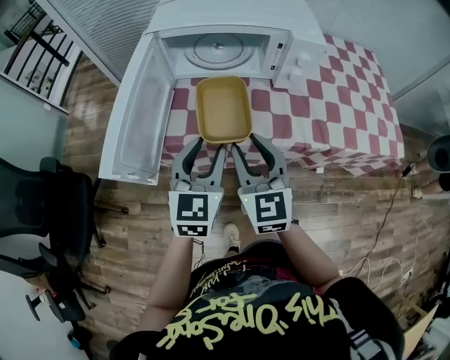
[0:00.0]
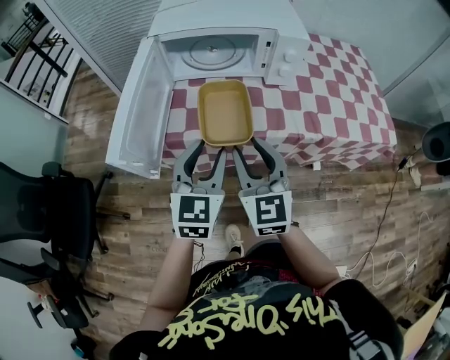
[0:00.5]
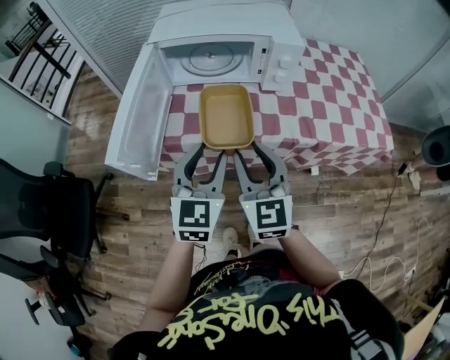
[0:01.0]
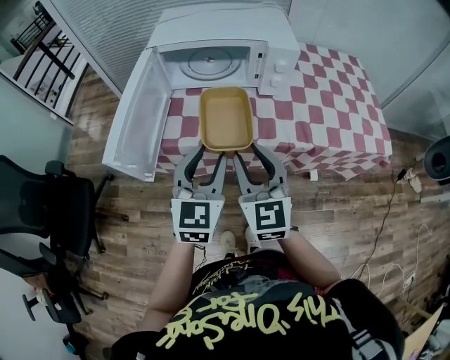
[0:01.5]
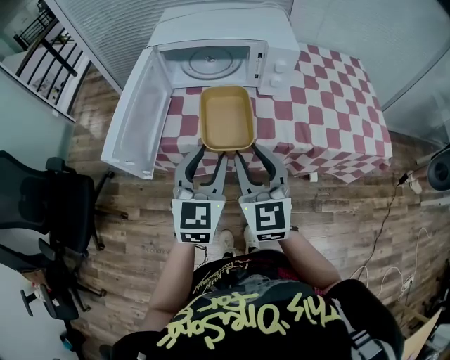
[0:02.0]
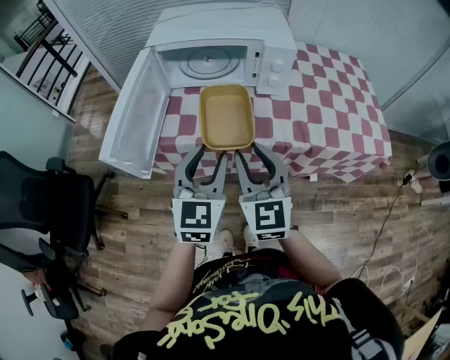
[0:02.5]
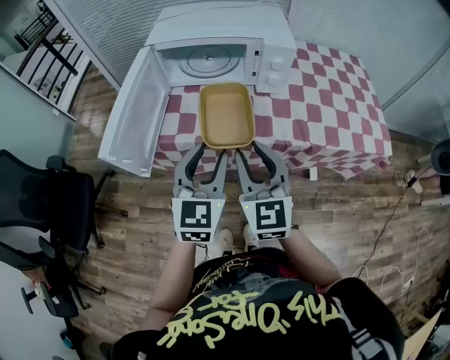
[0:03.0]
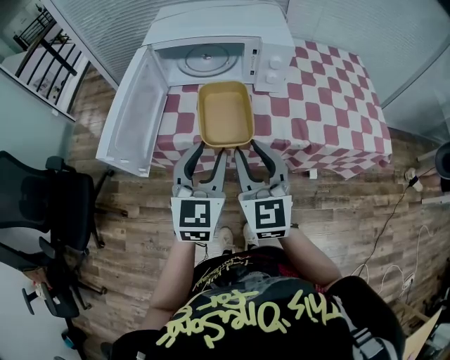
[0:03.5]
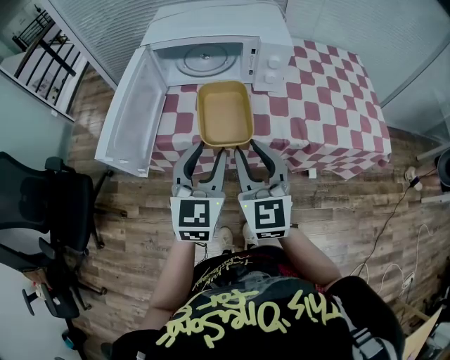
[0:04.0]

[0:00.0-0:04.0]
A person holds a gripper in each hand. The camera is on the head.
0:00.0 to 0:02.0: The two grippers go approximately 5 cm backward.
0:02.0 to 0:04.0: The grippers move only a little.

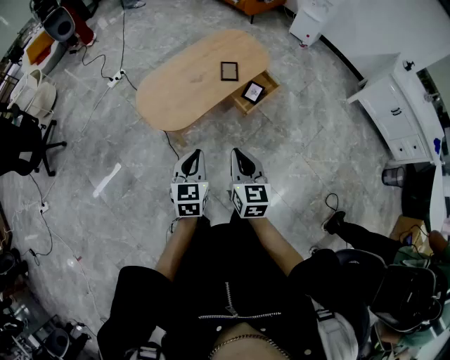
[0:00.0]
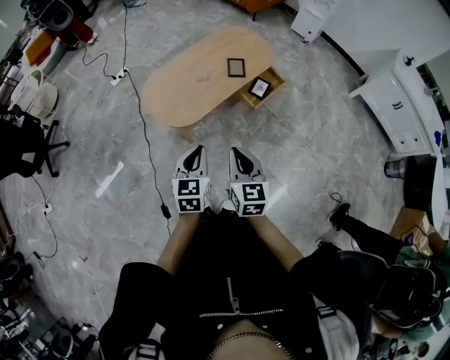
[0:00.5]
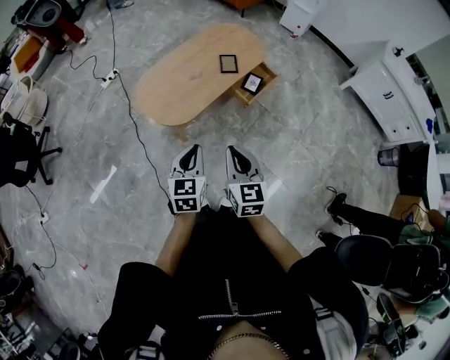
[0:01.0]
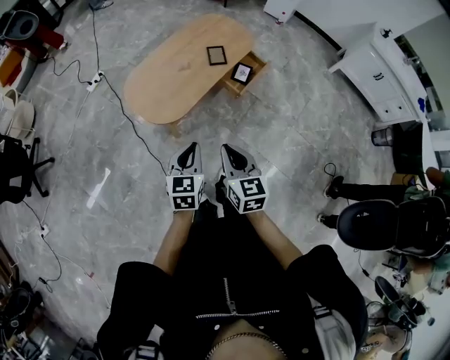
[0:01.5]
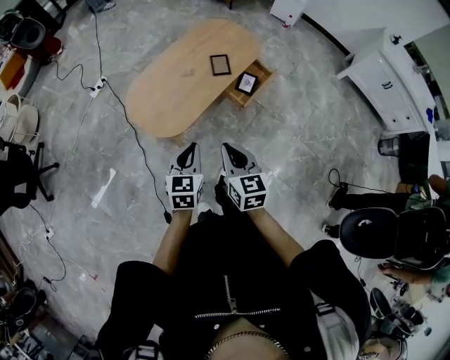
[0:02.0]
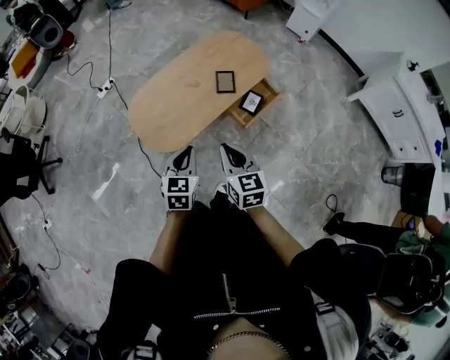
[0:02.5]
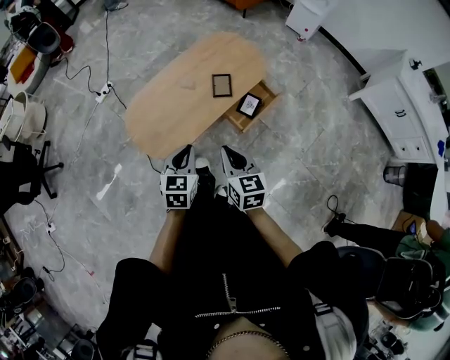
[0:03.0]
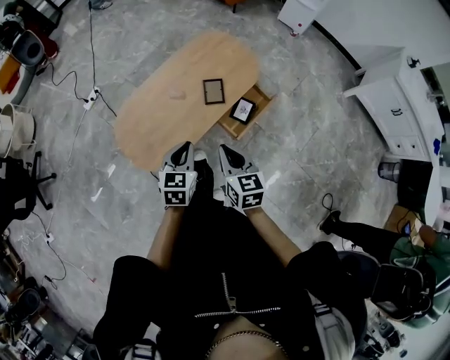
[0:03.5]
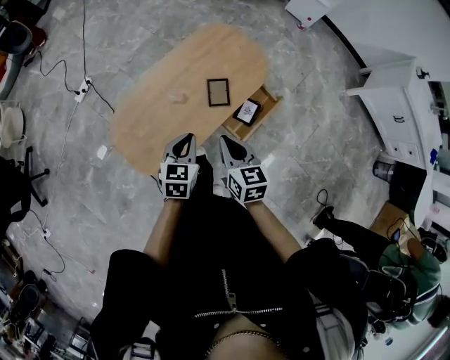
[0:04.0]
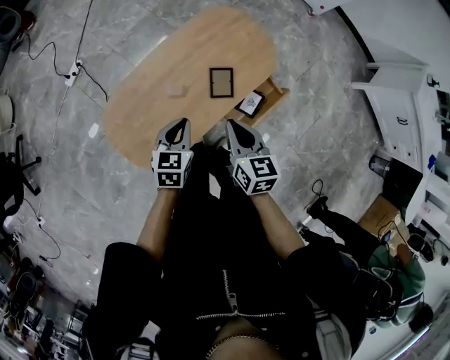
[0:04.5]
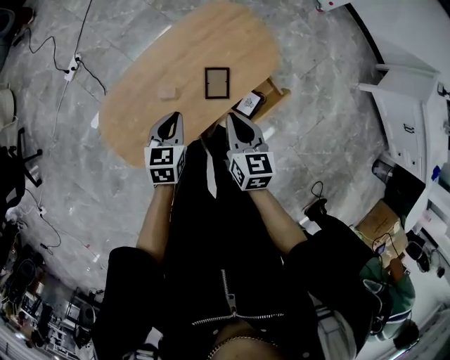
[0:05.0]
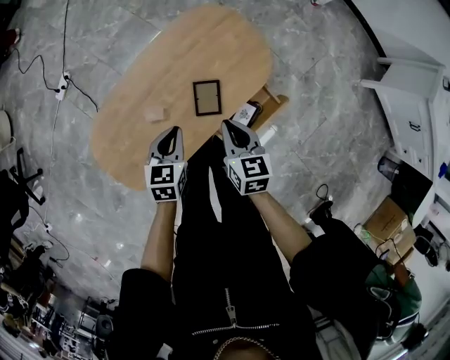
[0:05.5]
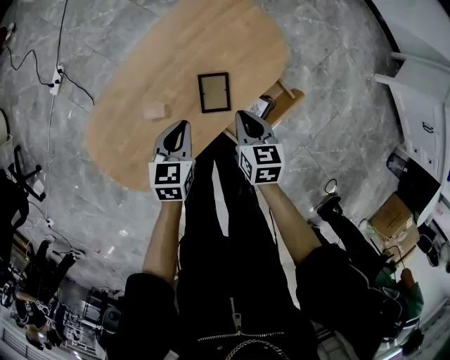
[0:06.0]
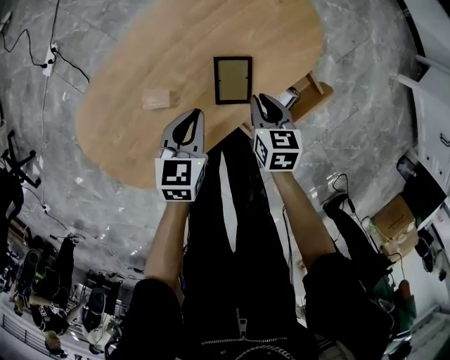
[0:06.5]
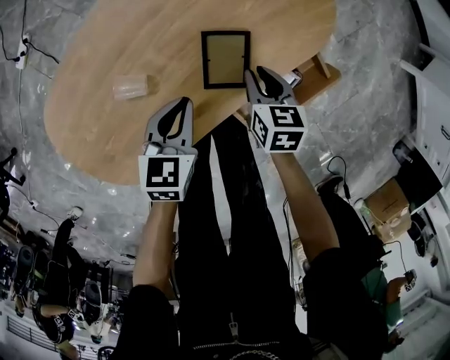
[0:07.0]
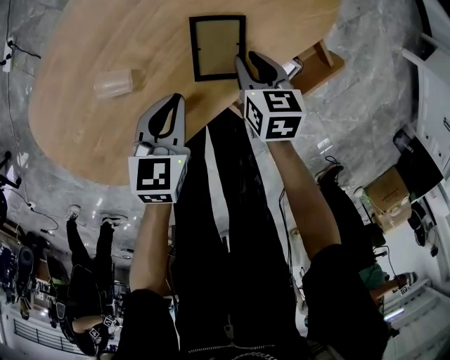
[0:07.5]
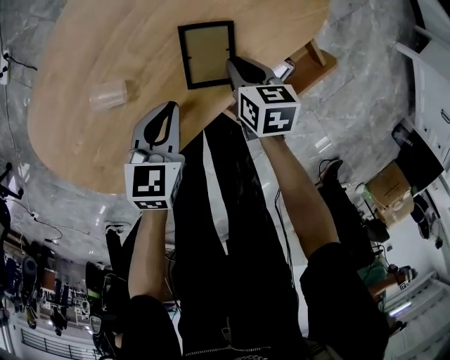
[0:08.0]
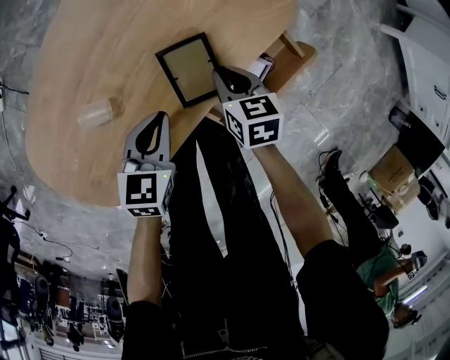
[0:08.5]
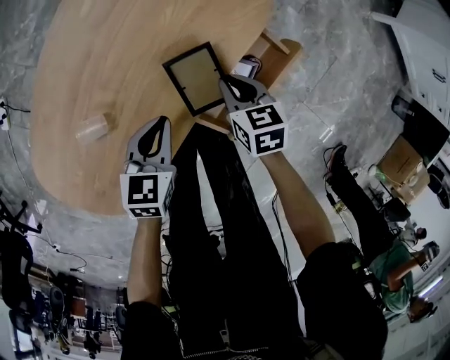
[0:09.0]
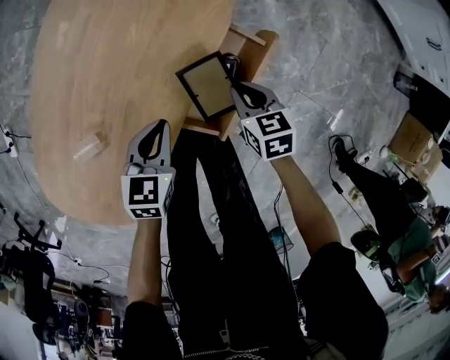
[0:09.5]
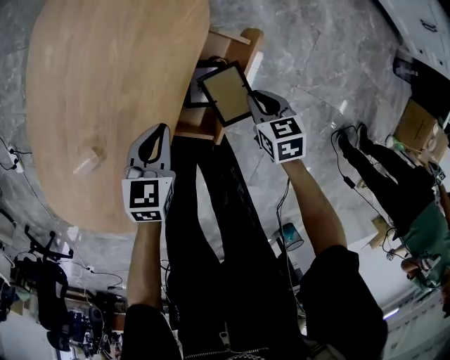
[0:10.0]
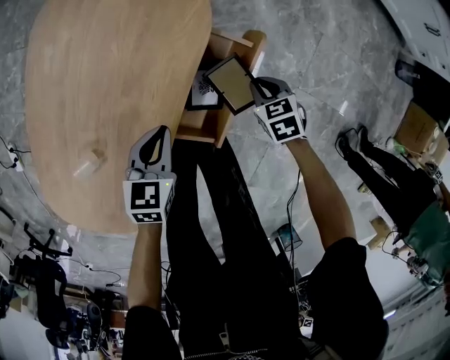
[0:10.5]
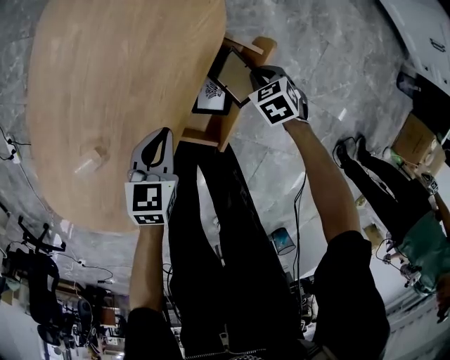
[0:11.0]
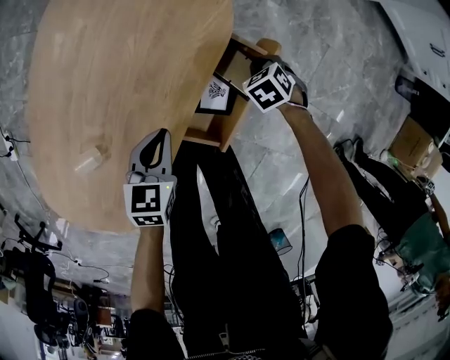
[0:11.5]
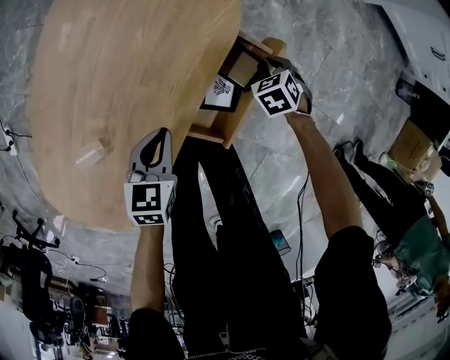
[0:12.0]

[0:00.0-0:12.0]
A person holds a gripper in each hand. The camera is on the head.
0:00.0 to 0:02.0: The right gripper goes roughly 10 cm to the left and forward. Meanwhile the left gripper heads forward and to the left, covering roughly 10 cm.
0:02.0 to 0:04.0: Both grippers travel together forward, approximately 35 cm.
0:04.0 to 0:06.0: The right gripper goes about 30 cm downward, forward and to the right. Meanwhile the left gripper moves downward and forward, some 25 cm.
0:06.0 to 0:08.0: Both grippers move downward, some 20 cm.
0:08.0 to 0:10.0: The right gripper shifts by roughly 25 cm. The left gripper ends up roughly 15 cm from where it was, and turns by roughly 20 degrees.
0:10.0 to 0:12.0: The right gripper shifts by about 10 cm, and swivels roughly 30 degrees.

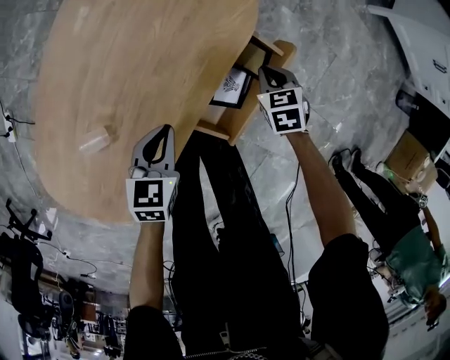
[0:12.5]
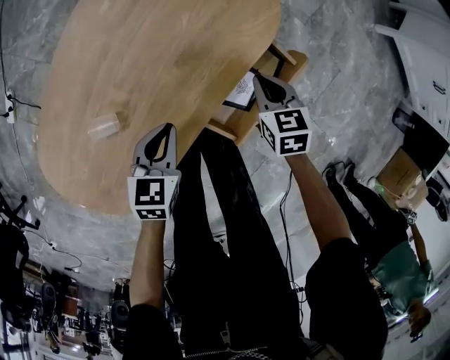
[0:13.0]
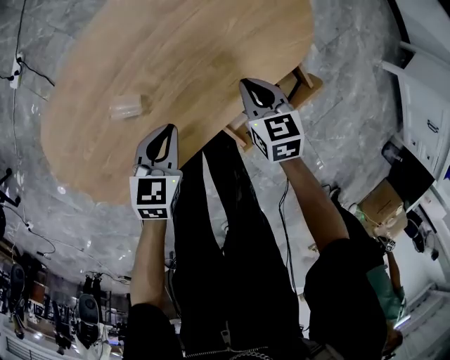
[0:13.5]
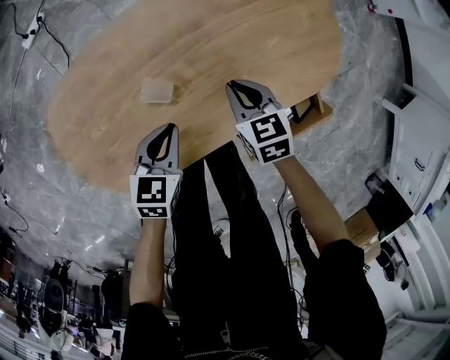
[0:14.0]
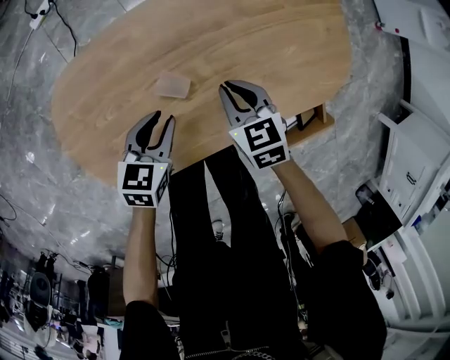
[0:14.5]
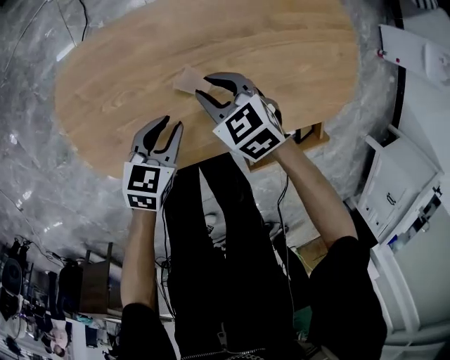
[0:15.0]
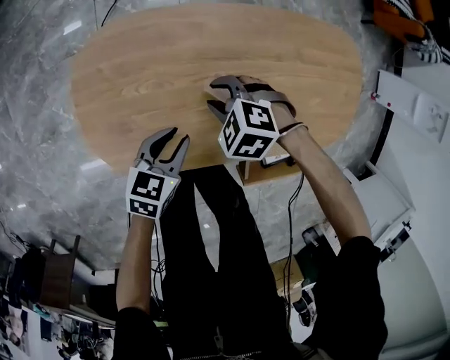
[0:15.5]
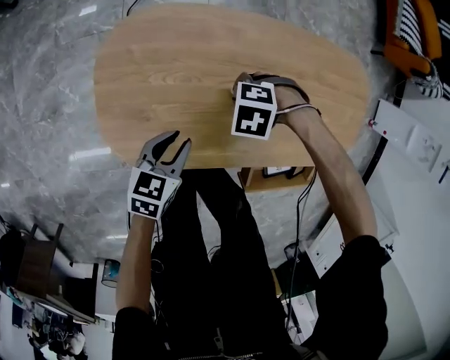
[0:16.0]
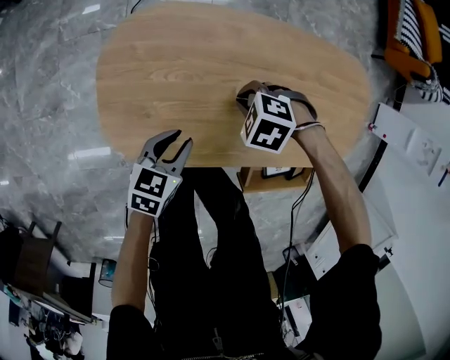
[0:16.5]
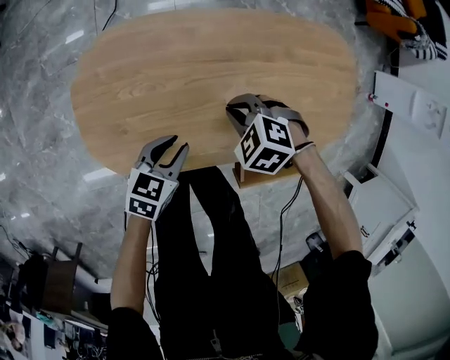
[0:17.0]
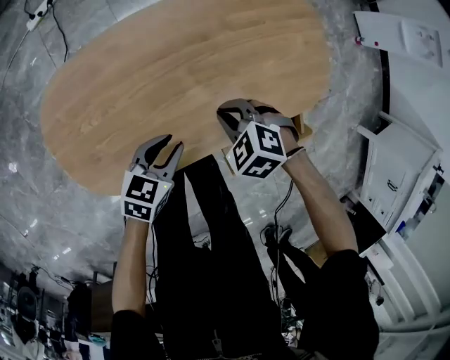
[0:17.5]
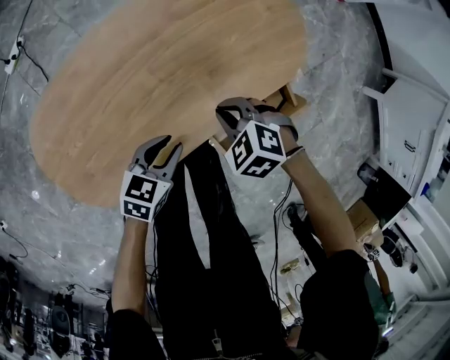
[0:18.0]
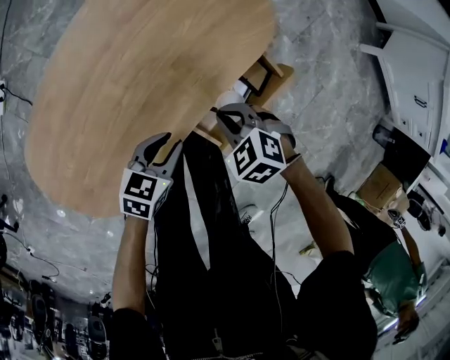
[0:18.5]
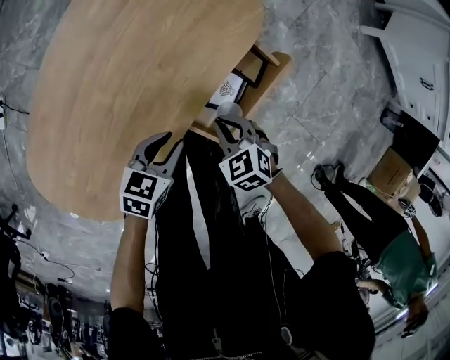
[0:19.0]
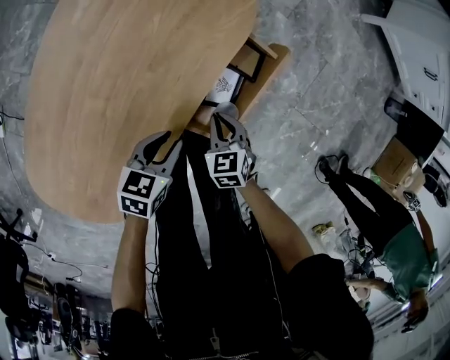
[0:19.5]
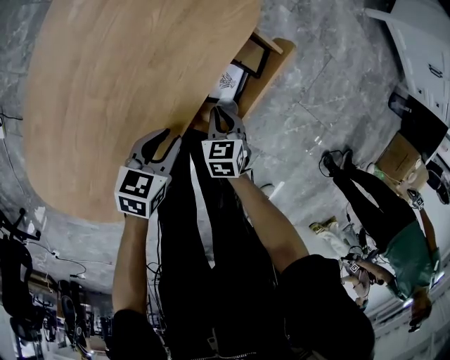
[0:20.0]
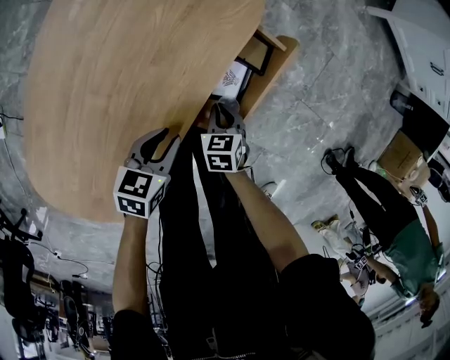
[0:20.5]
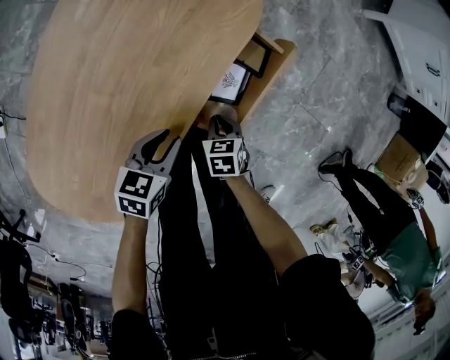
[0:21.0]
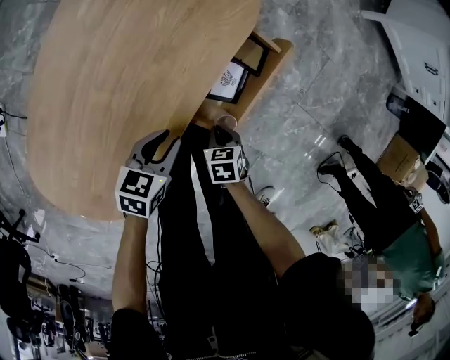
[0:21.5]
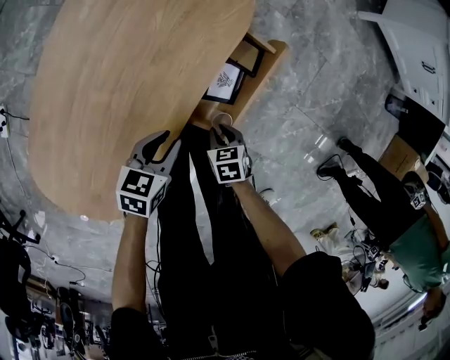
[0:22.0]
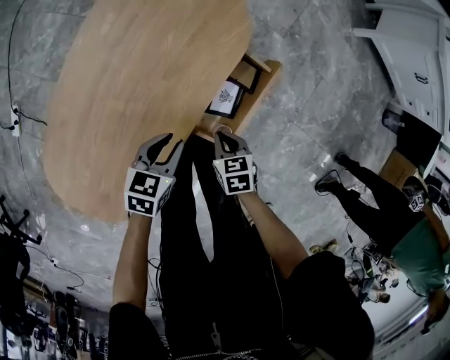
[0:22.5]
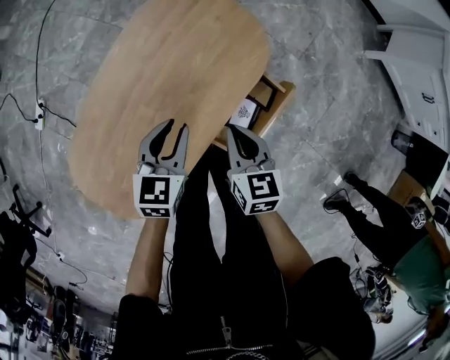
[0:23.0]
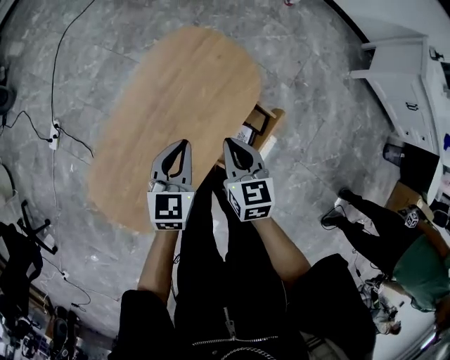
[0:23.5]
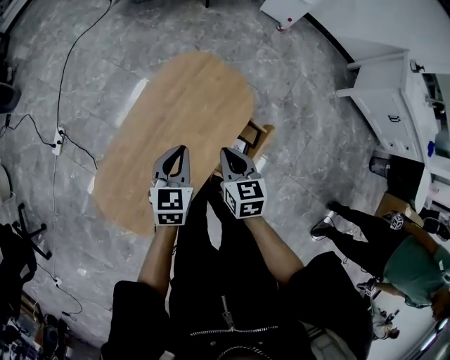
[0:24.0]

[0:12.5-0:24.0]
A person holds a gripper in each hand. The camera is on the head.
0:12.5 to 0:14.5: The right gripper ends up some 40 cm from where it was, and changes its angle by approximately 40 degrees. Meanwhile the left gripper moves roughly 20 cm, turns by roughly 30 degrees, and opens its fingers.
0:14.5 to 0:16.5: The left gripper changes place by roughly 15 cm; the right gripper ends up some 15 cm from where it was, rotates around the line of its fingers by roughly 70 degrees, counterclockwise from behind, and opens and closes again.
0:16.5 to 0:18.5: The right gripper changes place by approximately 35 cm, and rotates around the line of its fingers by some 60 degrees, clockwise from behind. The left gripper changes place by about 25 cm, and rotates approximately 50 degrees.
0:18.5 to 0:20.0: The right gripper shifts about 10 cm downward, and rotates around the line of its fingers by approximately 50 degrees, clockwise from behind.
0:20.0 to 0:22.0: The right gripper ends up roughly 5 cm from where it was.
0:22.0 to 0:24.0: Both grippers travel together upward, approximately 35 cm. The left gripper turns by some 40 degrees, and closes, while the right gripper tilts its fingers about 30 degrees upward.
